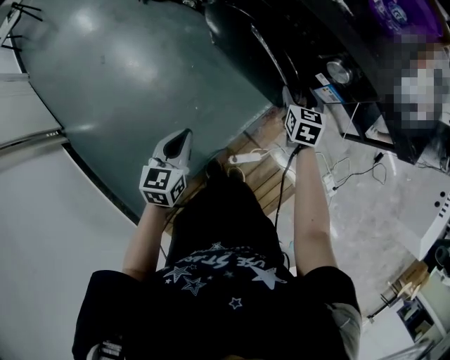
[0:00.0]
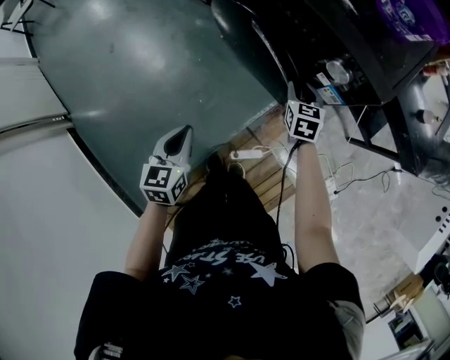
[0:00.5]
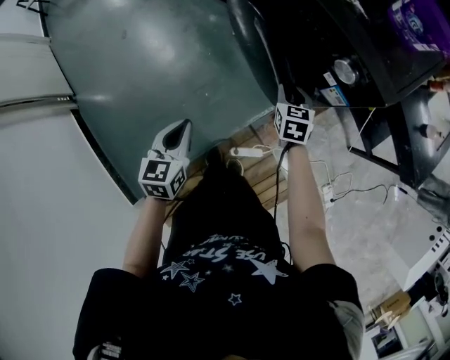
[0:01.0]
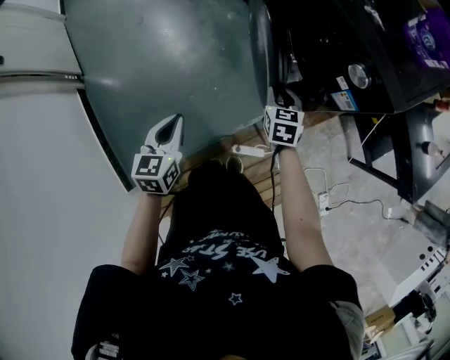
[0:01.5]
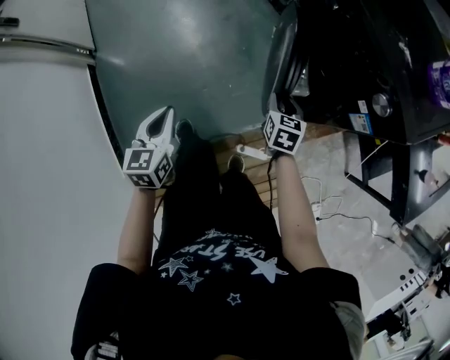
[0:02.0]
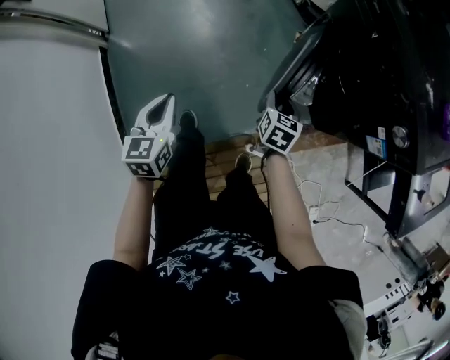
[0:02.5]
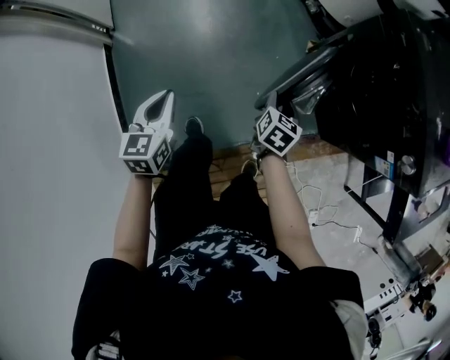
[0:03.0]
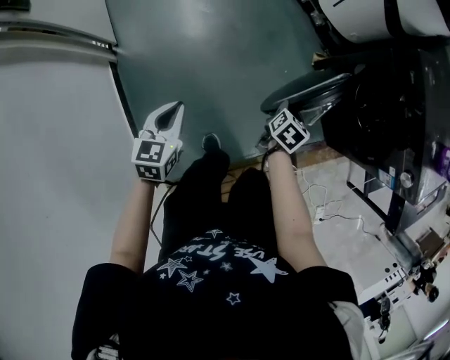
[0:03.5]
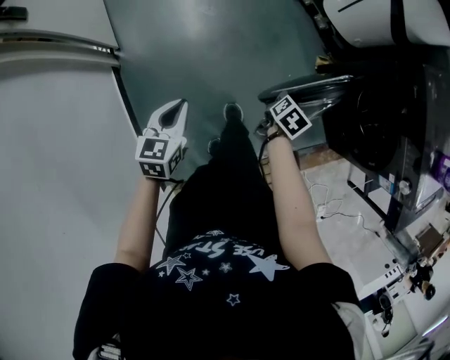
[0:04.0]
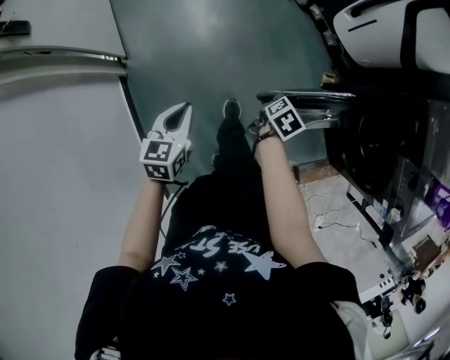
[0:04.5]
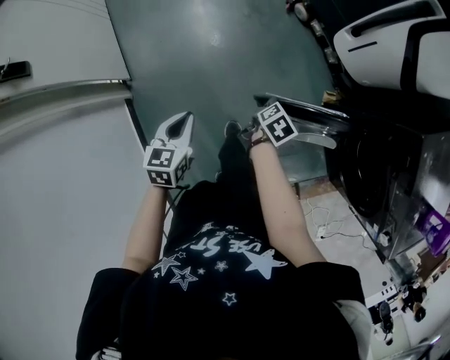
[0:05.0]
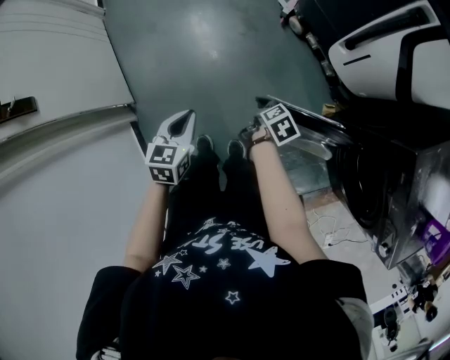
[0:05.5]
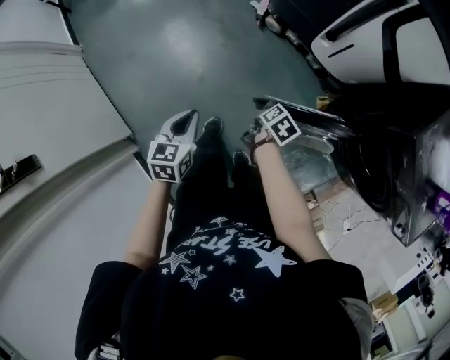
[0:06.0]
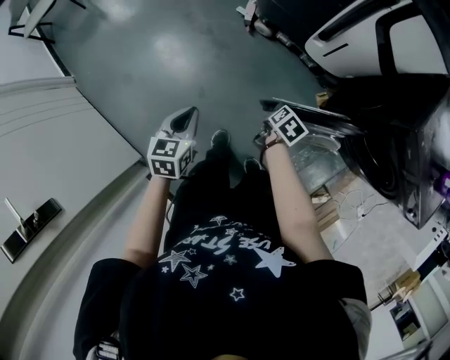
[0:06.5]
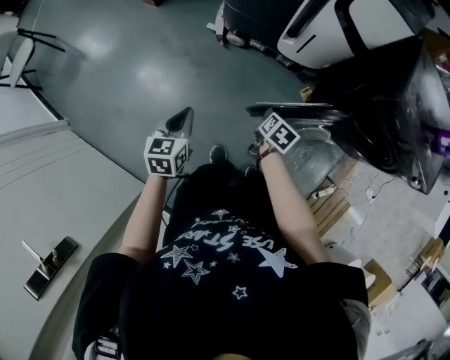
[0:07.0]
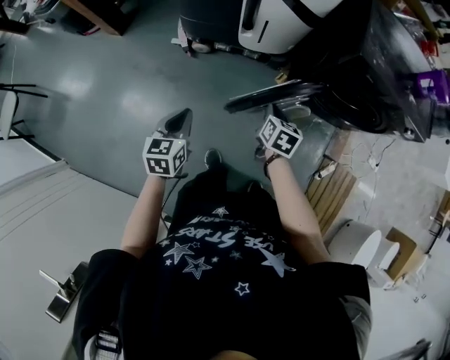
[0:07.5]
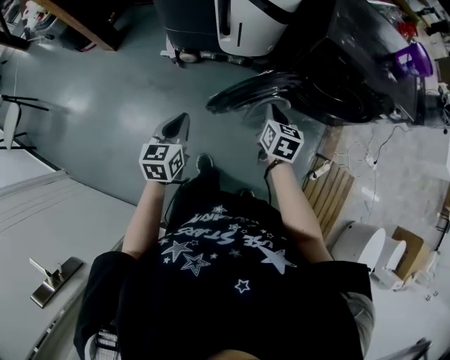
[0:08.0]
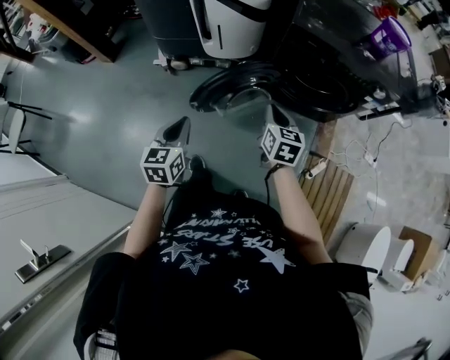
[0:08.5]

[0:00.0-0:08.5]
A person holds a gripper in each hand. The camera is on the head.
0:00.0 to 0:02.0: The right gripper changes place by about 20 cm, rotates some 20 degrees, and closes. Meanwhile the left gripper ends up approximately 15 cm from where it was, and swivels some 30 degrees.
0:02.0 to 0:04.0: The grippers both shift to the left and forward by some 40 cm. The right gripper rotates about 30 degrees.
0:04.0 to 0:06.5: The grippers both shift forward and to the left by roughly 40 cm. The left gripper changes its angle by about 20 degrees. The right gripper changes its angle by some 30 degrees.
0:06.5 to 0:08.5: The right gripper travels to the right, upward and backward by some 35 cm, changes its angle by roughly 30 degrees, and closes its fingers; the left gripper travels to the right and upward by roughly 30 cm, and changes its angle by roughly 30 degrees.

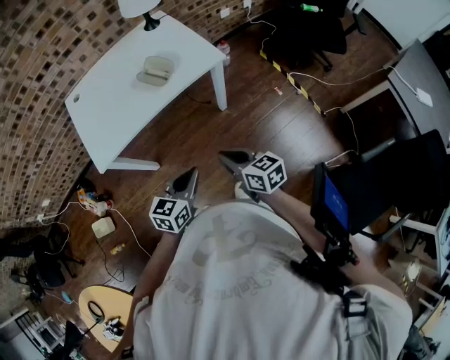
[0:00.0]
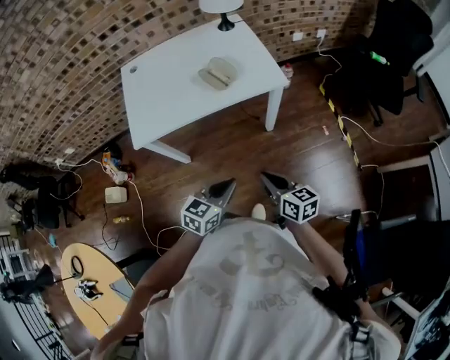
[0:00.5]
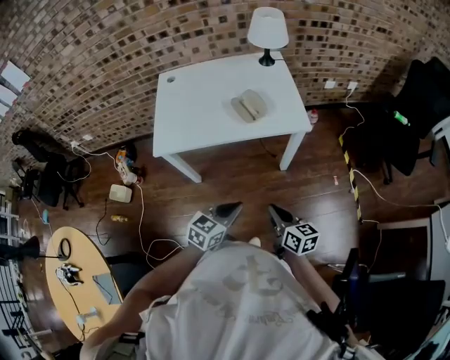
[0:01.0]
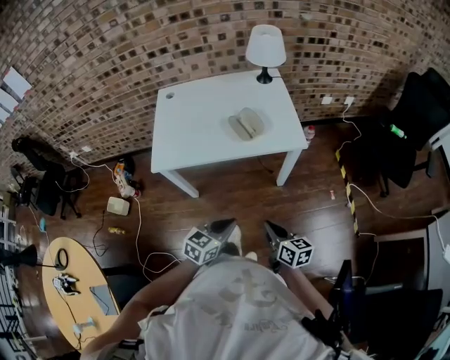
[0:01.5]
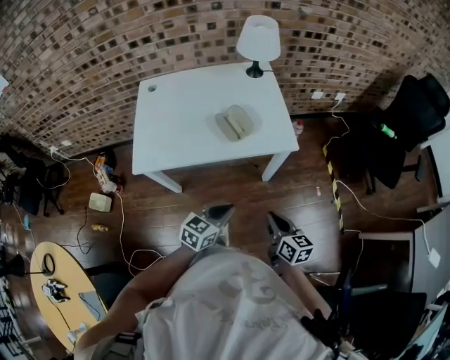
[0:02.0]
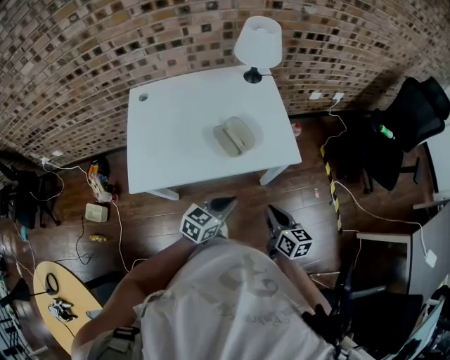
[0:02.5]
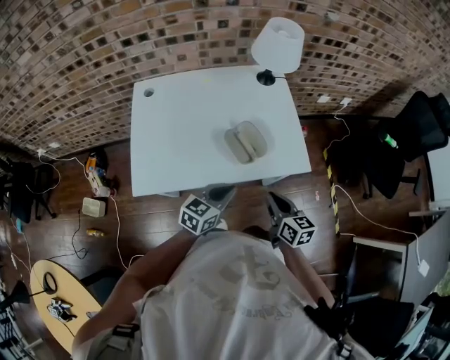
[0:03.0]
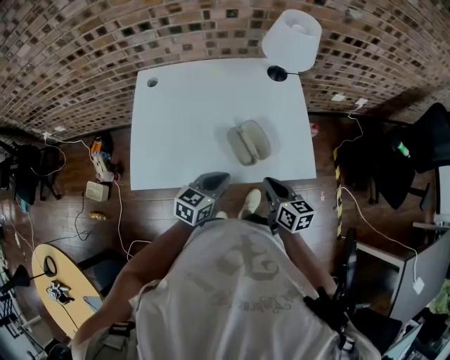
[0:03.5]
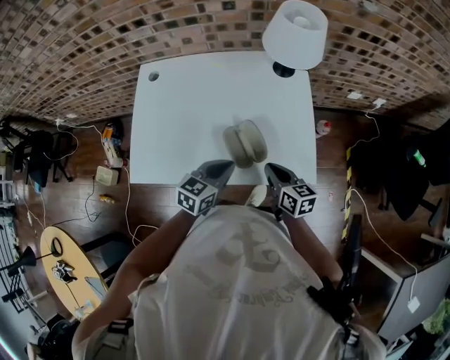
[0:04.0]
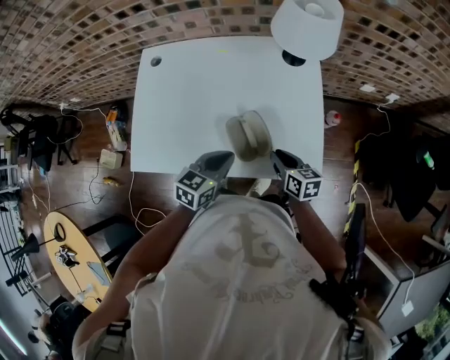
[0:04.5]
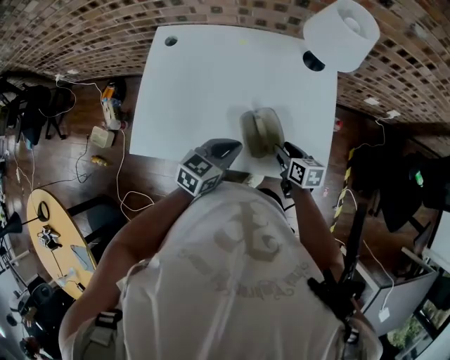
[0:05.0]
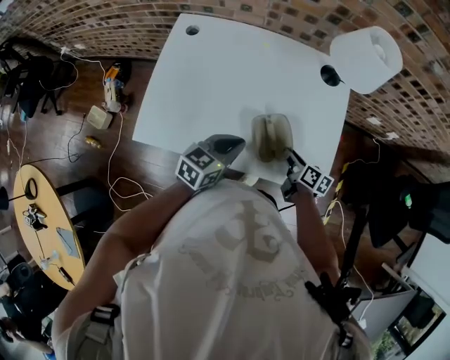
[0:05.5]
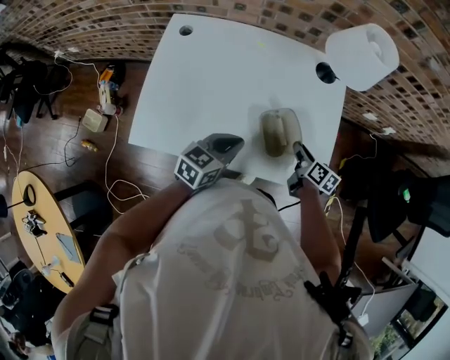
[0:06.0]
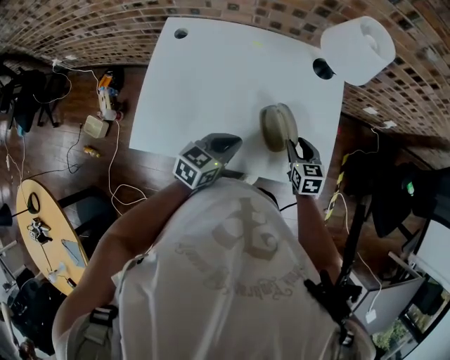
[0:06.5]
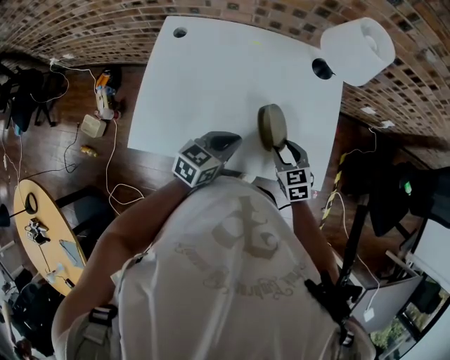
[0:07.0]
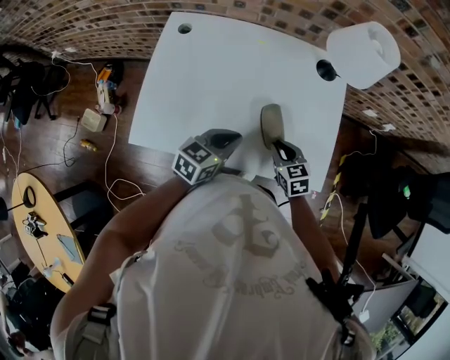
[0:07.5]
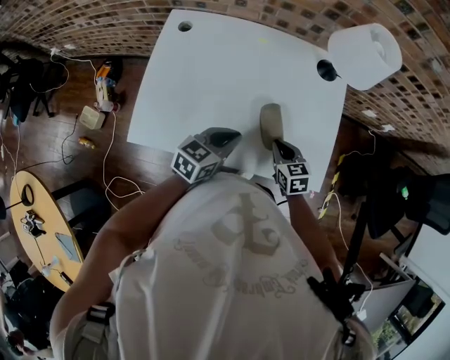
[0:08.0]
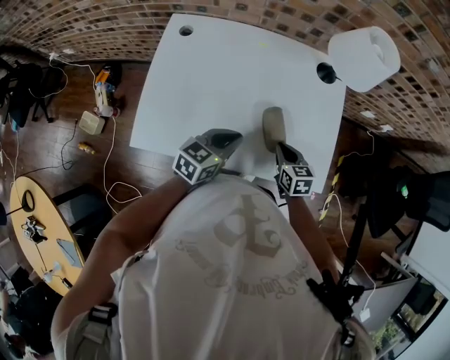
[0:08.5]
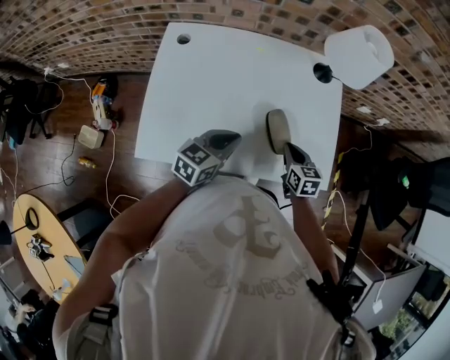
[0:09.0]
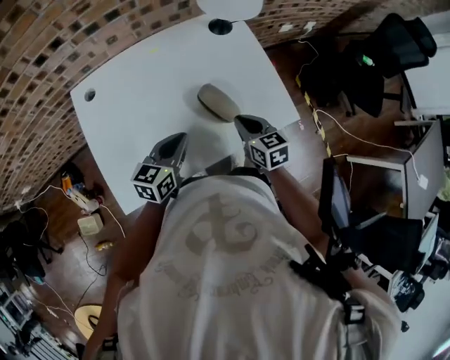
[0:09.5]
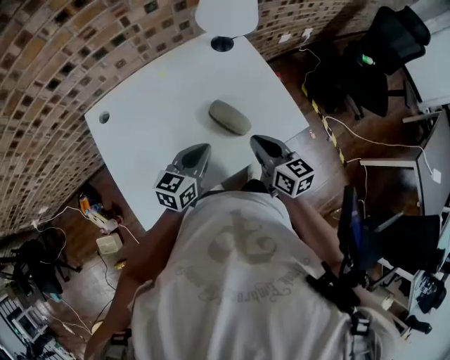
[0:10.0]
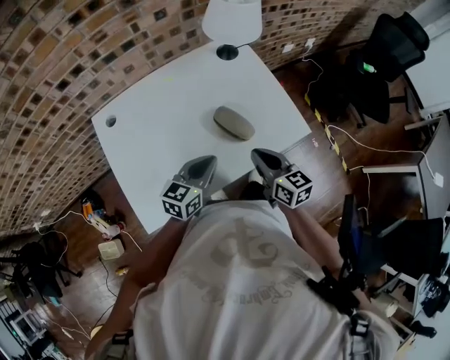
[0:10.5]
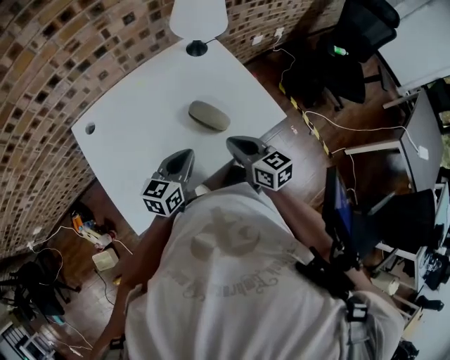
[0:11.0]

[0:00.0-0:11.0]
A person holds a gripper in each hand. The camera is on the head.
0:00.0 to 0:02.0: The left gripper travels forward by approximately 10 cm, while the right gripper is displaced forward and to the right by about 15 cm.
0:02.0 to 0:03.5: Both grippers move forward and to the left, some 25 cm.
0:03.5 to 0:05.5: The right gripper shifts some 15 cm forward and downward, changes its angle by approximately 30 degrees, and opens its fingers; the left gripper moves forward, about 10 cm.
0:05.5 to 0:07.5: The right gripper travels to the left by approximately 5 cm, and rotates around the line of its fingers by roughly 50 degrees, counterclockwise from behind.
0:07.5 to 0:09.0: The right gripper turns by roughly 20 degrees.
0:09.0 to 0:11.0: The right gripper moves upward and backward, roughly 15 cm, and swivels about 30 degrees. Meanwhile the left gripper swivels about 20 degrees.

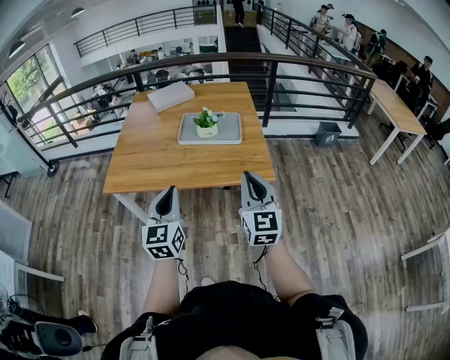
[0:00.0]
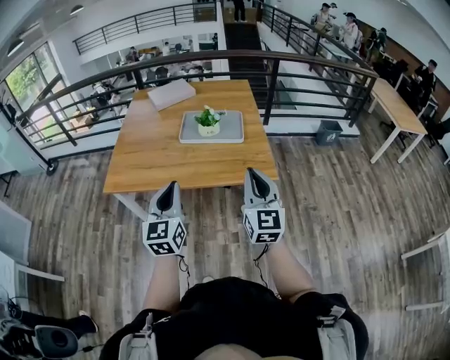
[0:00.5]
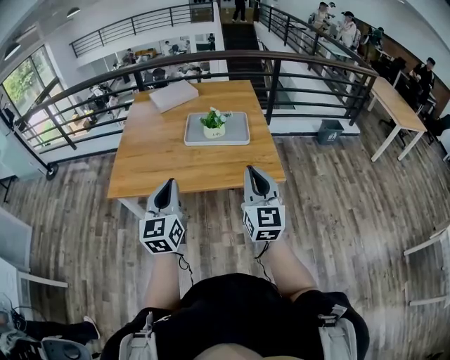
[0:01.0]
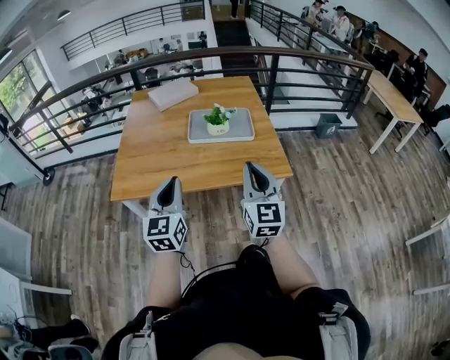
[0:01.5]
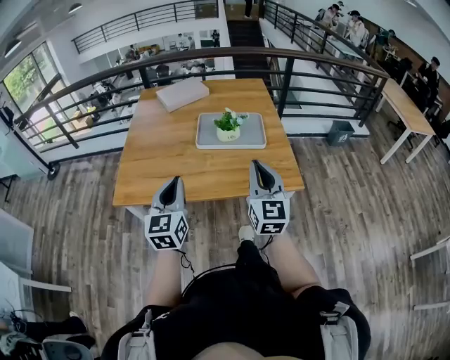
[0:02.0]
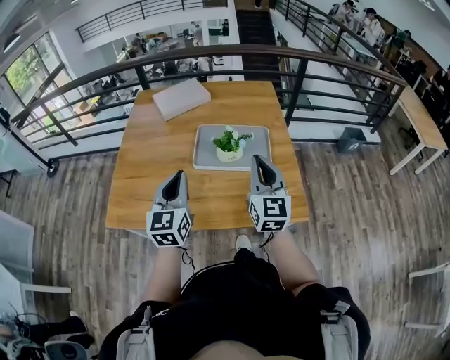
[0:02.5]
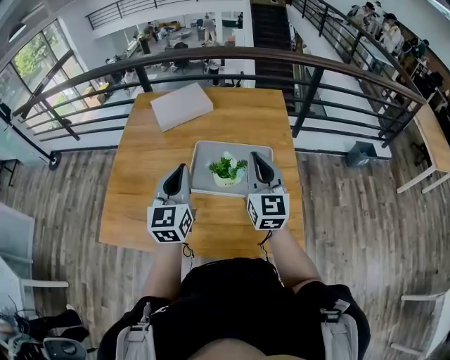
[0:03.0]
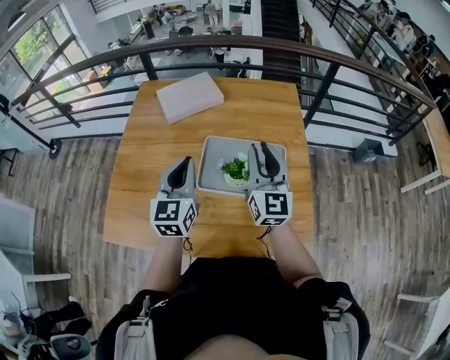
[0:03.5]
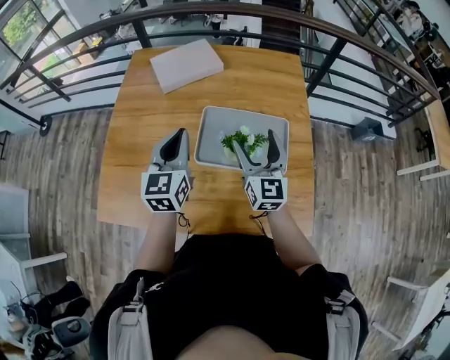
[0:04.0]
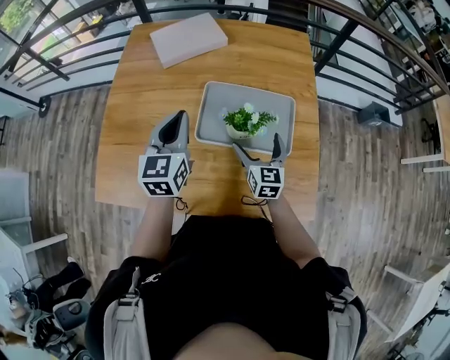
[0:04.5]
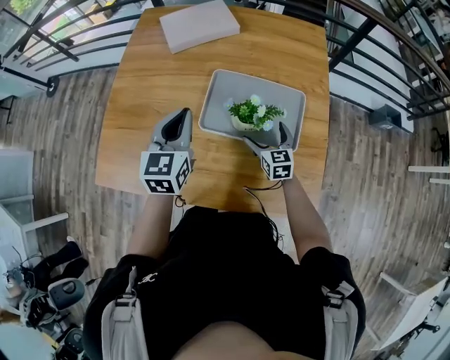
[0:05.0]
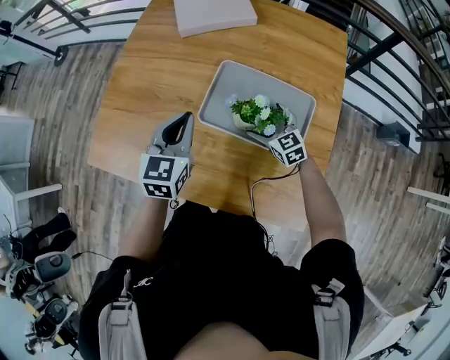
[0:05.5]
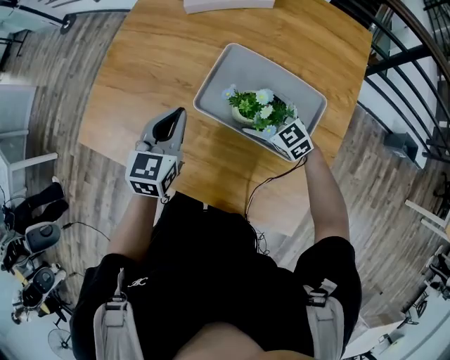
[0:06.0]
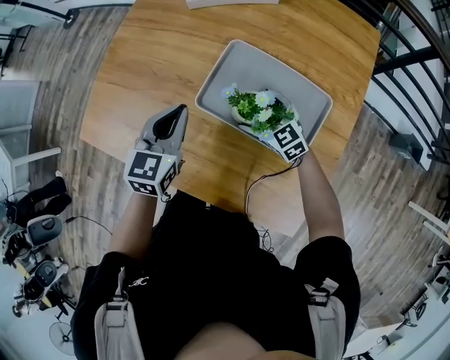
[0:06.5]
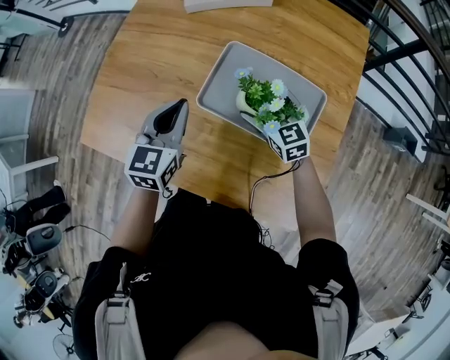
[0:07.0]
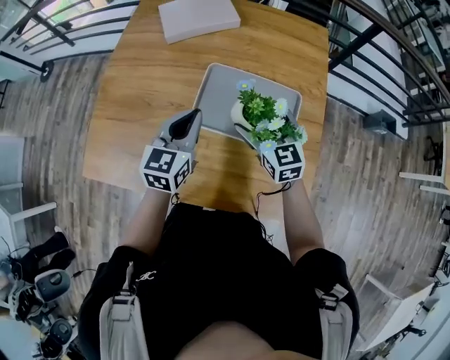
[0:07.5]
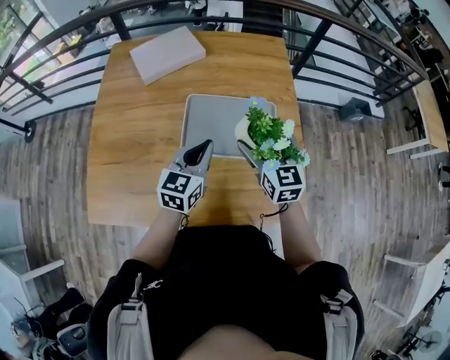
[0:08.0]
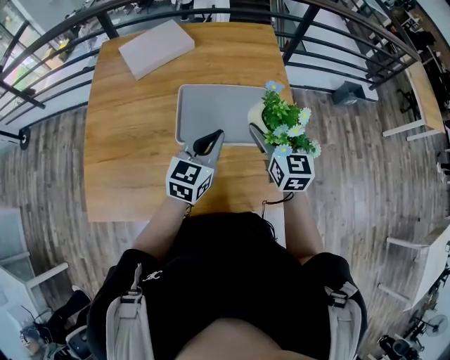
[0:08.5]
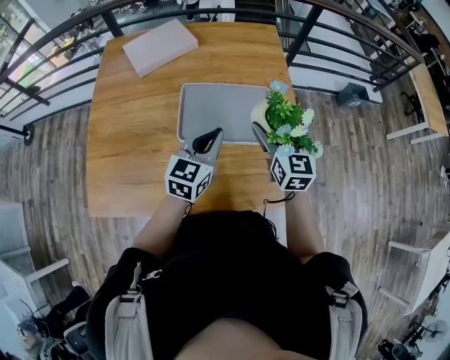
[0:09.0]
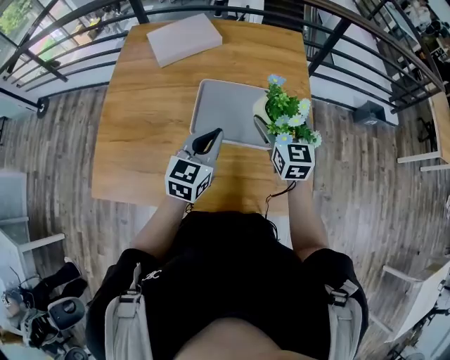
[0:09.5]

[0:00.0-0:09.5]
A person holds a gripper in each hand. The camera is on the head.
0:00.0 to 0:02.0: Both grippers move forward and to the left, some 15 cm.
0:02.0 to 0:04.0: The two grippers travel together, forward, some 40 cm. The right gripper opens.
0:04.0 to 0:05.5: The left gripper is displaced downward by approximately 10 cm; the right gripper goes approximately 25 cm downward, and angles its fingers downward, by some 30 degrees.
0:05.5 to 0:07.5: The right gripper heads upward, covering approximately 15 cm, and swivels some 20 degrees.
0:07.5 to 0:09.5: The left gripper shifts by some 10 cm. Meanwhile the right gripper rotates some 20 degrees.
